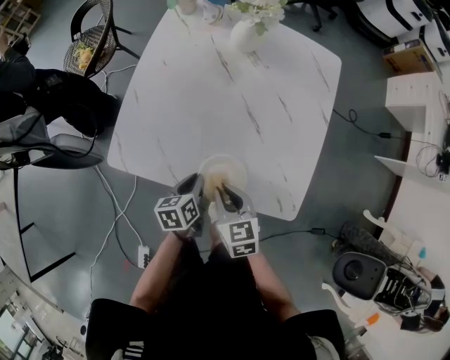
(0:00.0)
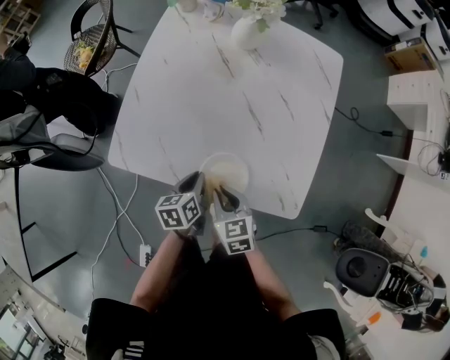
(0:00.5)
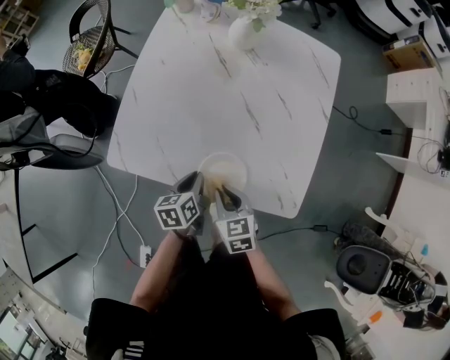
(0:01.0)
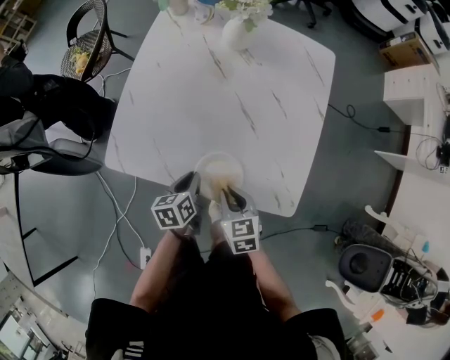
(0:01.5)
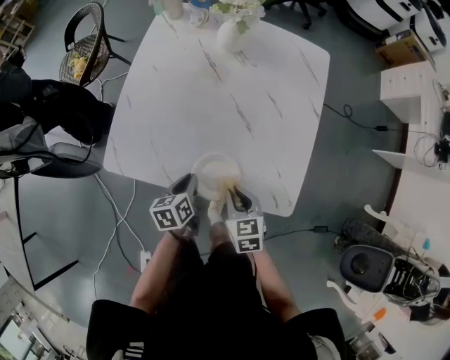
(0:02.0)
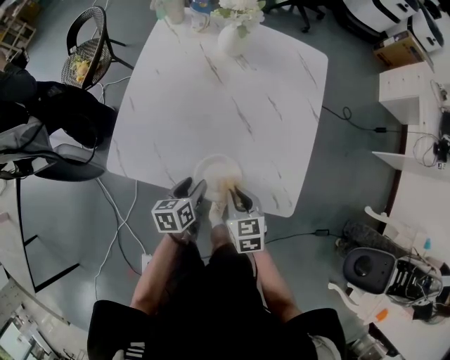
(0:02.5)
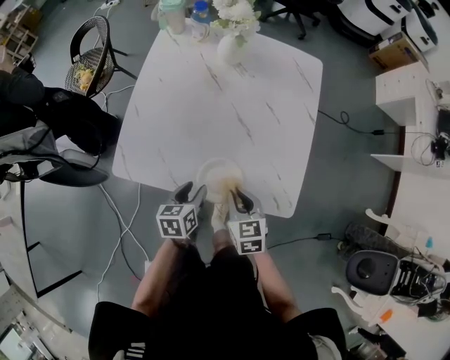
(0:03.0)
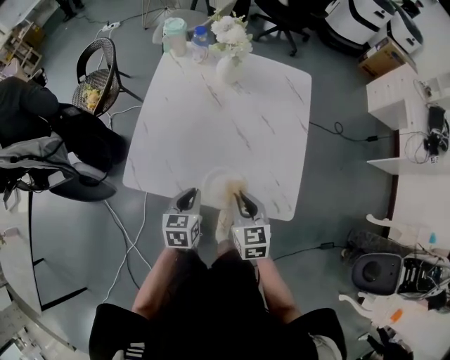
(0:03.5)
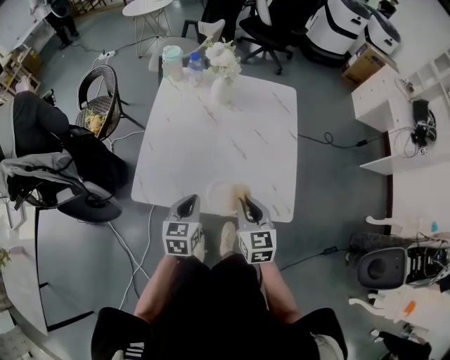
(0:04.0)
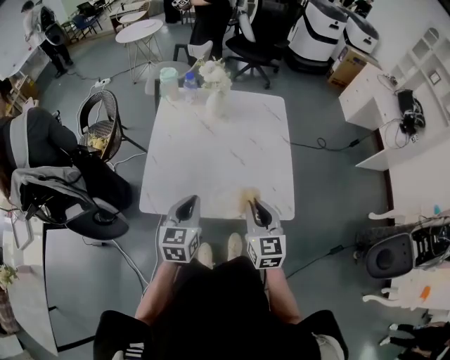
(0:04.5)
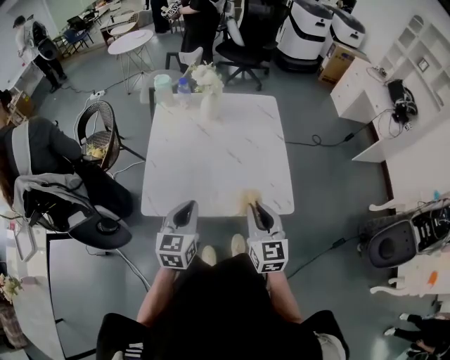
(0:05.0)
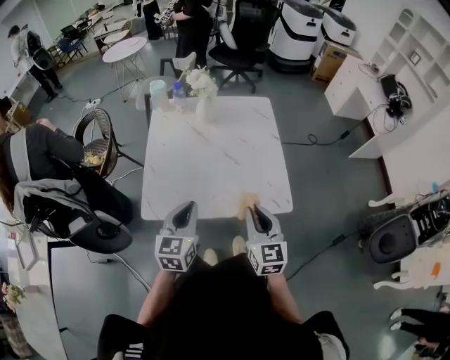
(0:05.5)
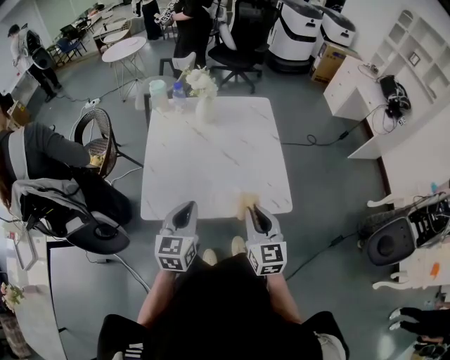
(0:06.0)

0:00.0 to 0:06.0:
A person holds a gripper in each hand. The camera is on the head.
0:00.0 to 0:02.0: The right gripper moves to the right, roughly 5 cm.
0:02.0 to 0:04.0: The two grippers go some 15 cm upward. The right gripper changes its angle by some 20 degrees. Meanwhile the left gripper changes its angle by roughly 30 degrees, and opens, then closes again.
0:04.0 to 0:06.0: The left gripper shifts roughly 15 cm upward and backward; the right gripper moves backward and upward, approximately 15 cm.

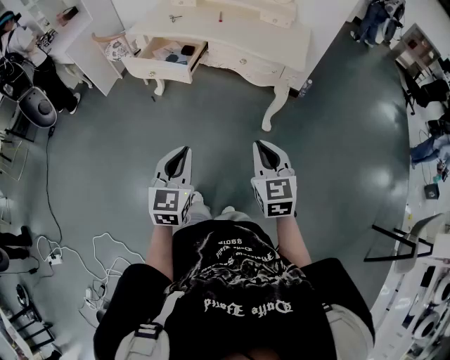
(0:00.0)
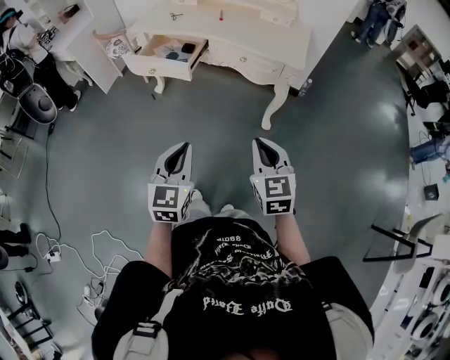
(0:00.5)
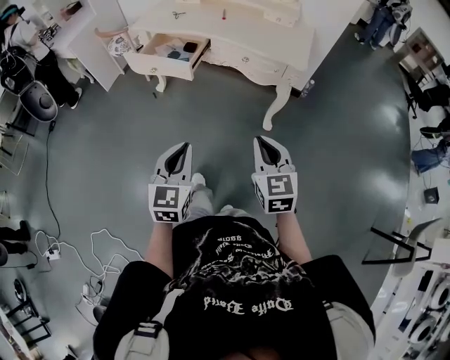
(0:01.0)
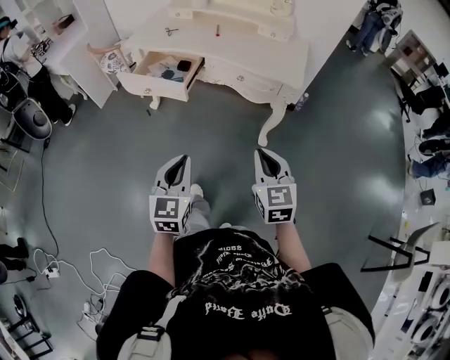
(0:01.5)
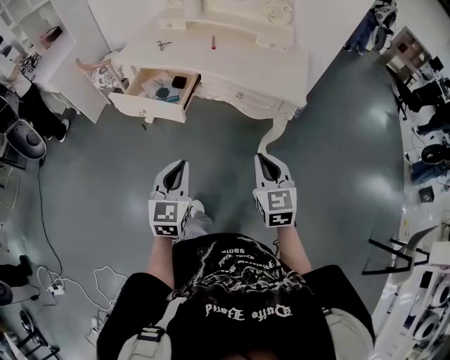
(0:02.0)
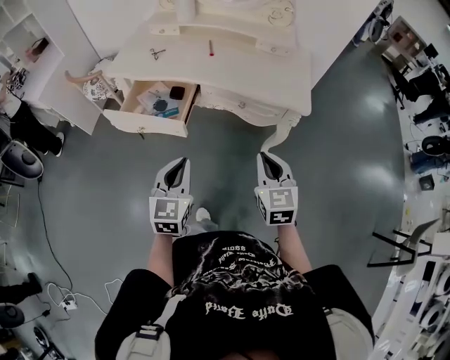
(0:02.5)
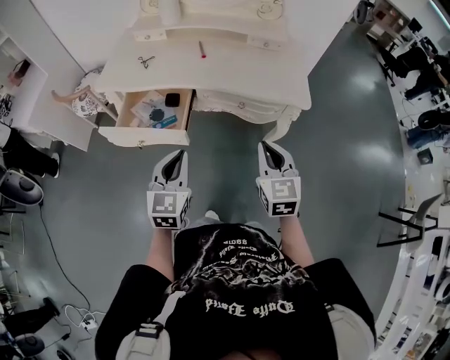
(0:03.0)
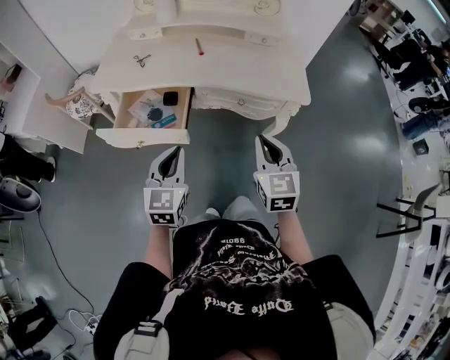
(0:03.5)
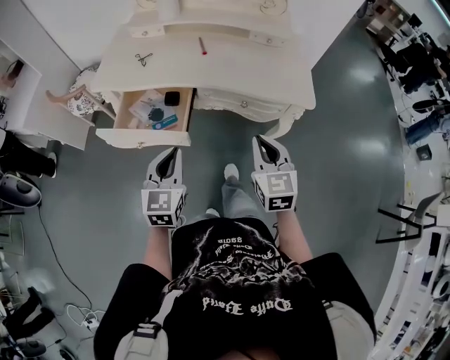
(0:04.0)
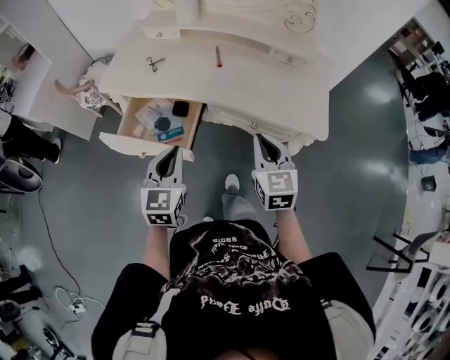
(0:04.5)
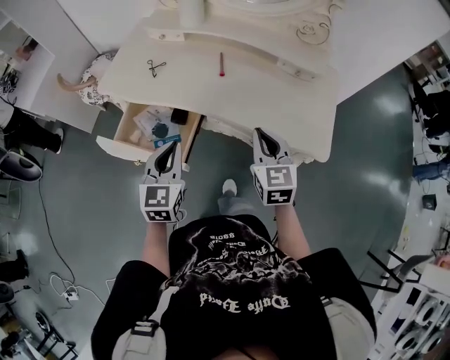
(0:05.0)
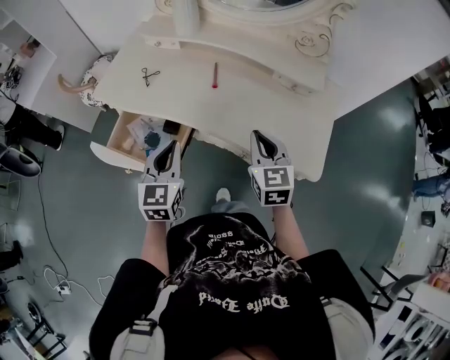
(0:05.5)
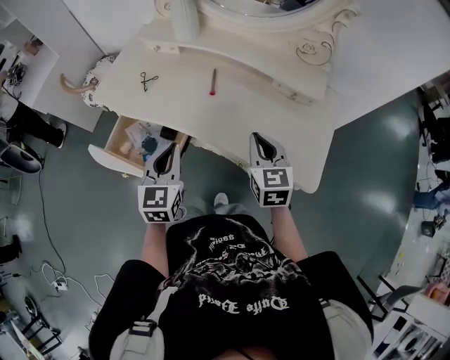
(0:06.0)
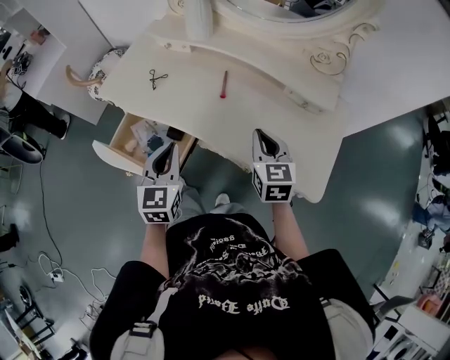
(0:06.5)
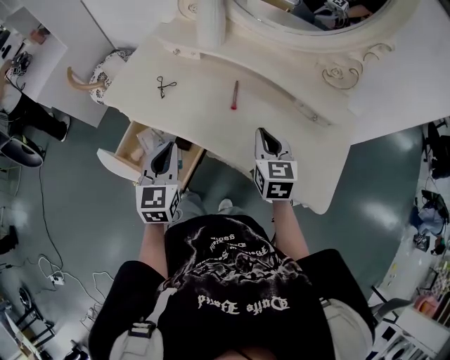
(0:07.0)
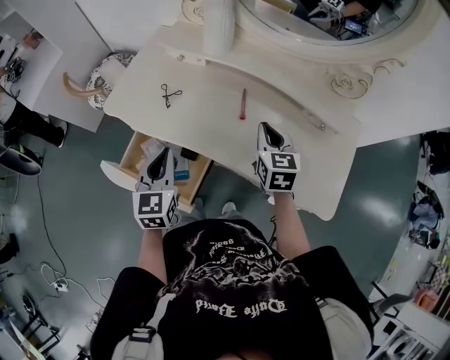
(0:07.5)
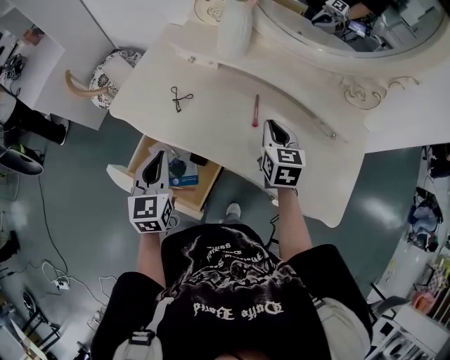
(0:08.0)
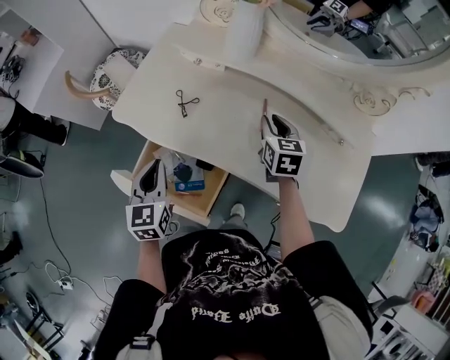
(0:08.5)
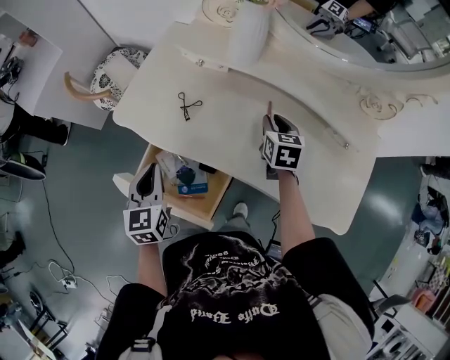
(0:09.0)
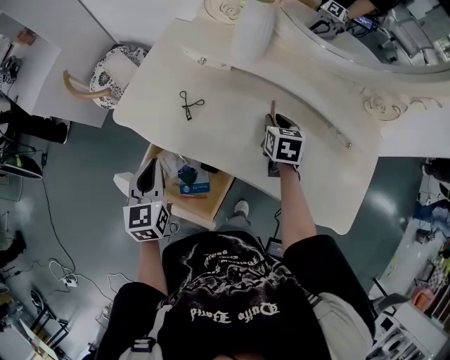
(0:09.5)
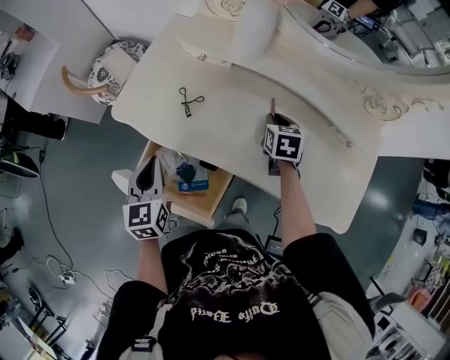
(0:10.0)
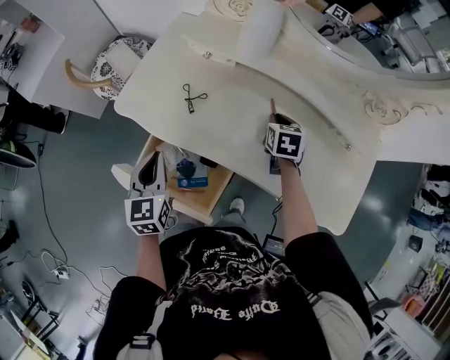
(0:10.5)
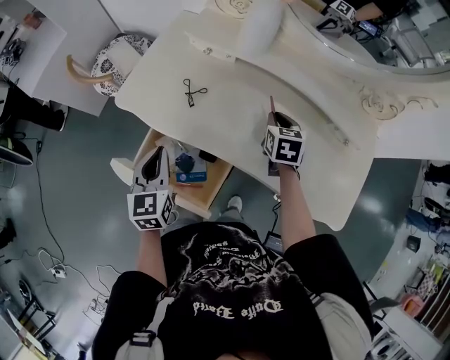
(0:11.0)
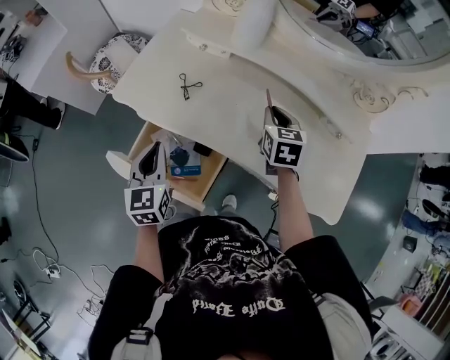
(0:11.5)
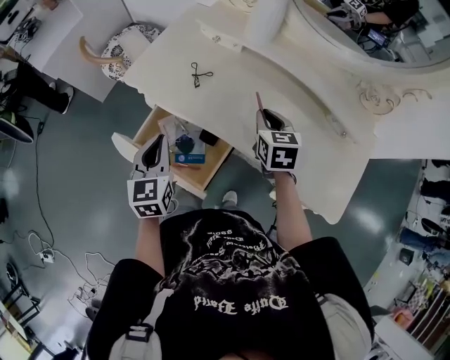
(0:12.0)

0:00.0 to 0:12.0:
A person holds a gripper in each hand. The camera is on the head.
0:00.0 to 0:02.0: Both grippers travel together forward, roughly 15 cm.
0:02.0 to 0:04.0: Both grippers move forward and to the left, approximately 20 cm.
0:04.0 to 0:06.0: The grippers both shift forward by some 25 cm.
0:06.0 to 0:08.0: The left gripper goes some 20 cm to the left and forward. The right gripper is displaced forward and to the left by approximately 20 cm.
0:08.0 to 0:10.0: The left gripper is displaced to the left by some 5 cm; the right gripper travels downward and forward by approximately 10 cm.
0:10.0 to 0:12.0: The left gripper moves backward, some 5 cm, while the right gripper moves backward, upward and to the left, about 15 cm.

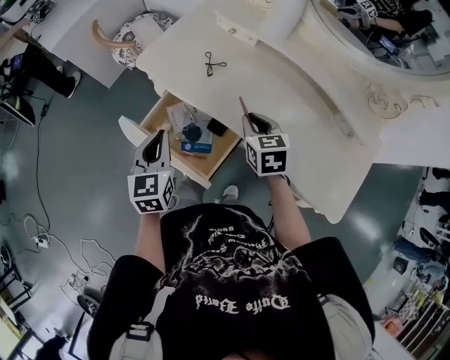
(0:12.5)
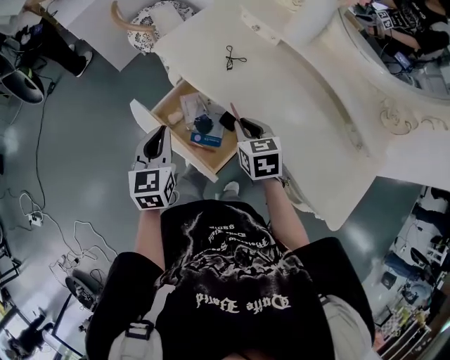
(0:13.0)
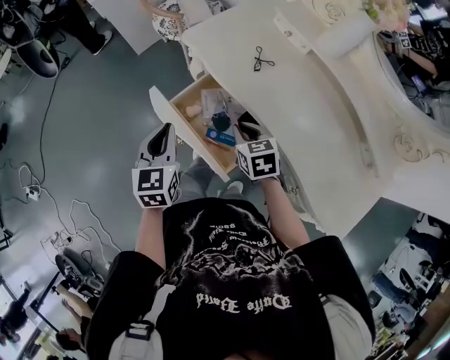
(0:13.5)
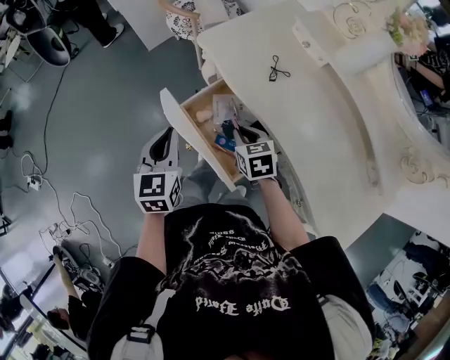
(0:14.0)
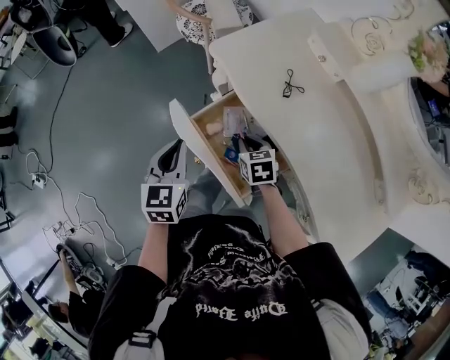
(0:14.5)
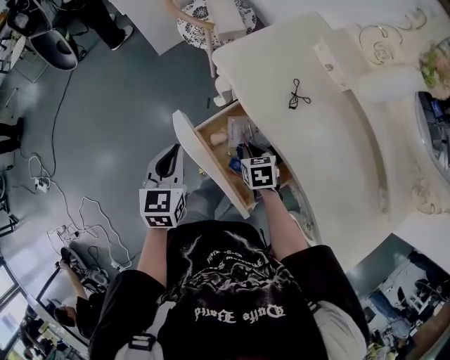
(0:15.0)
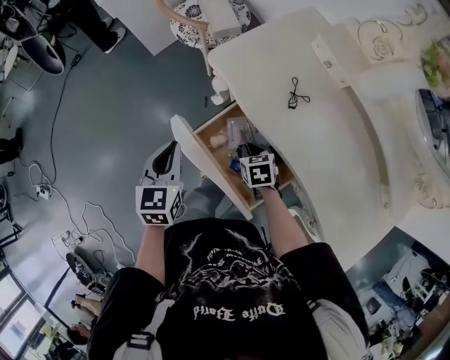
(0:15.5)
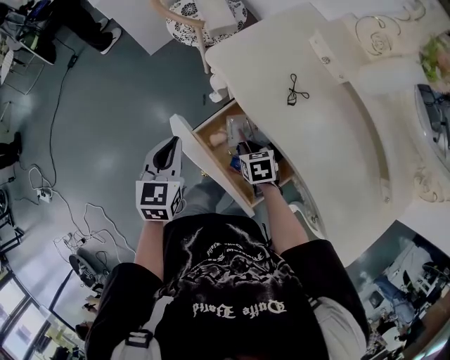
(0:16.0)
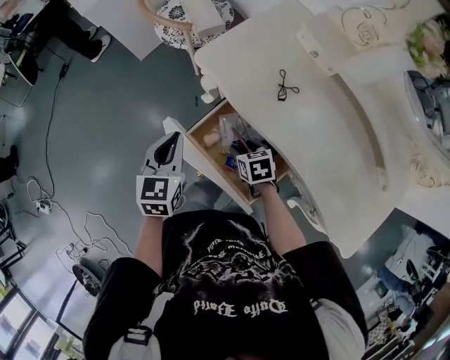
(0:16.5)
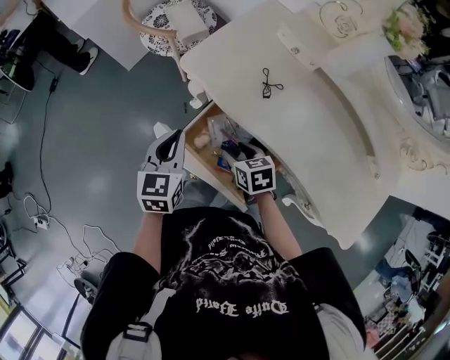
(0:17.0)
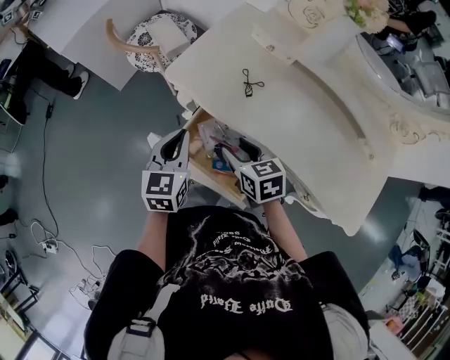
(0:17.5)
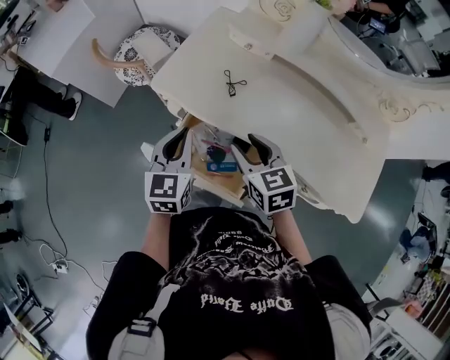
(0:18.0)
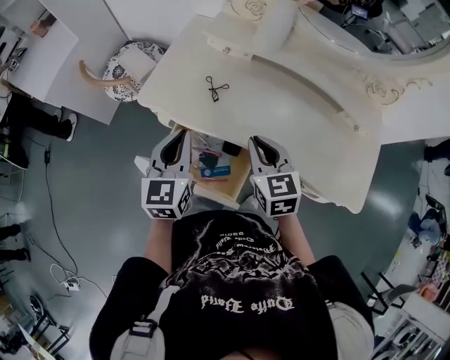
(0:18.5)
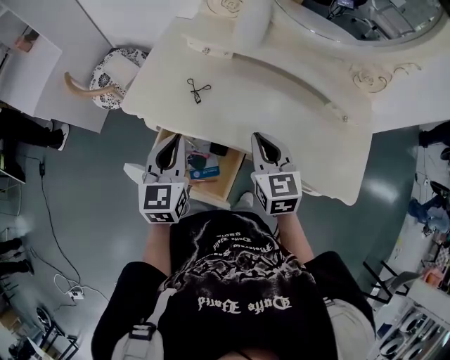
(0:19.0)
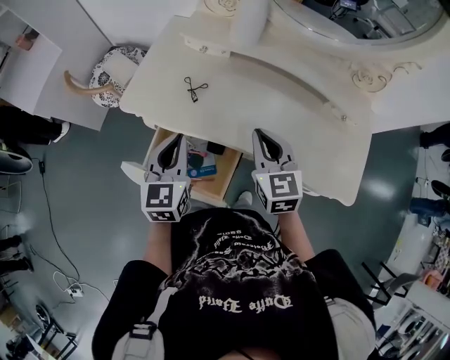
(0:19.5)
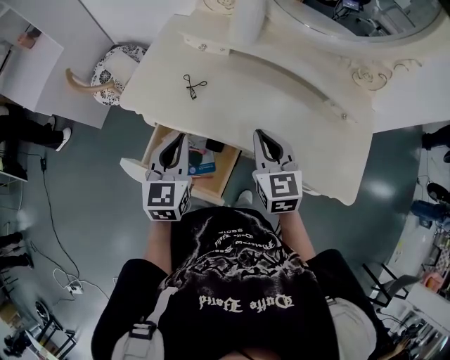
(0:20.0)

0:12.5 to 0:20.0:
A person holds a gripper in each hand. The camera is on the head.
0:12.5 to 0:14.5: The left gripper is displaced to the left by some 10 cm; the right gripper shifts roughly 20 cm to the left and downward, and swivels roughly 30 degrees.
0:14.5 to 0:16.5: The left gripper goes some 5 cm forward; the right gripper opens.
0:16.5 to 0:18.0: The right gripper heads upward, covering roughly 20 cm, and changes its angle by about 30 degrees. Meanwhile the left gripper heads to the right and upward, covering some 15 cm, and changes its angle by some 20 degrees.
0:18.0 to 0:20.0: The two grippers go approximately 10 cm to the right. The right gripper rotates about 20 degrees, and closes up.

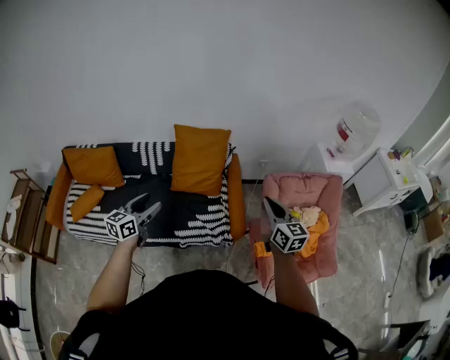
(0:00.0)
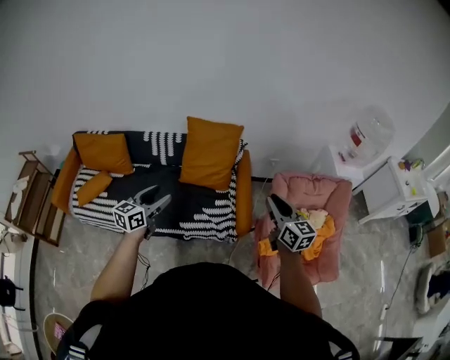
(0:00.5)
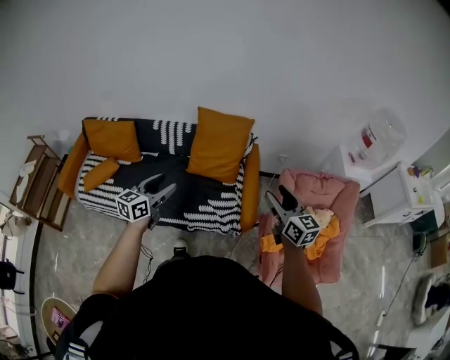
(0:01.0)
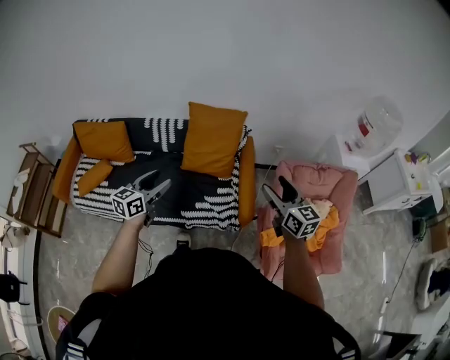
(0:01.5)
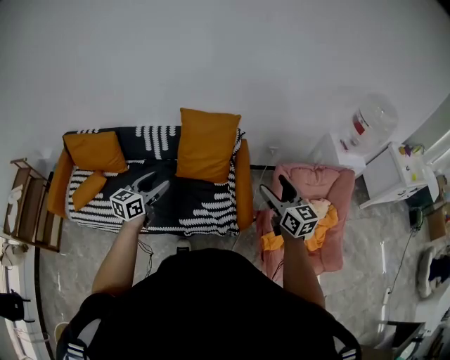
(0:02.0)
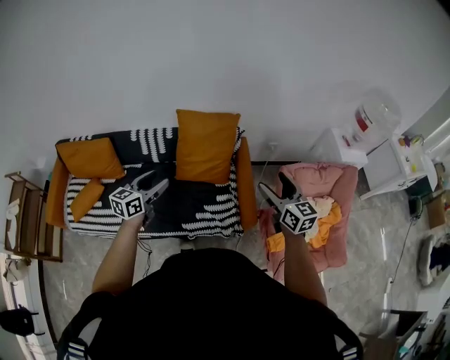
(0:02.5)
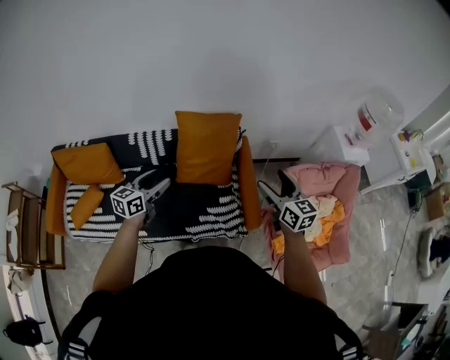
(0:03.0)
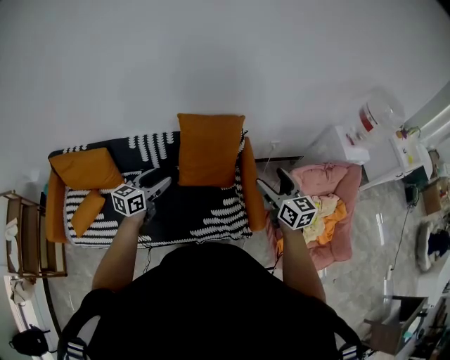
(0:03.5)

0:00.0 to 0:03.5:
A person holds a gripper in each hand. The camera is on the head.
0:00.0 to 0:02.0: The grippers both shift forward by roughly 5 cm. The right gripper opens up.
0:02.0 to 0:03.5: The two grippers go roughly 15 cm forward and to the left.
